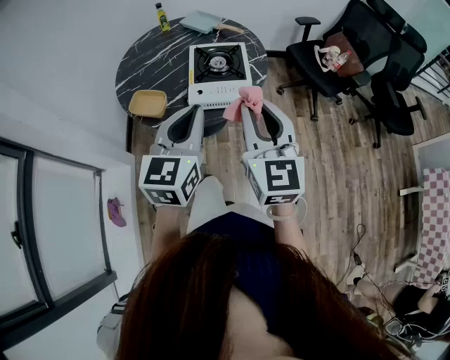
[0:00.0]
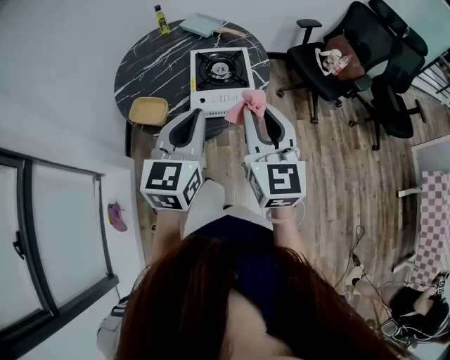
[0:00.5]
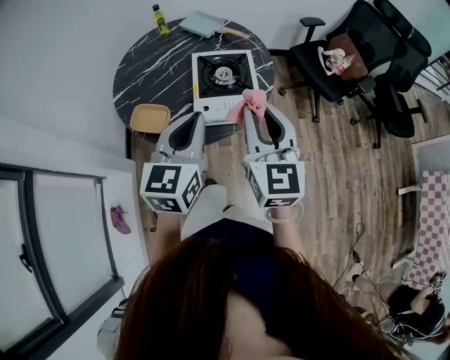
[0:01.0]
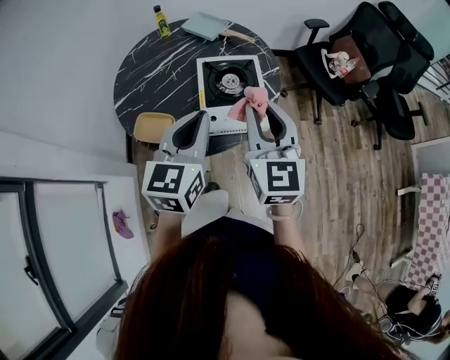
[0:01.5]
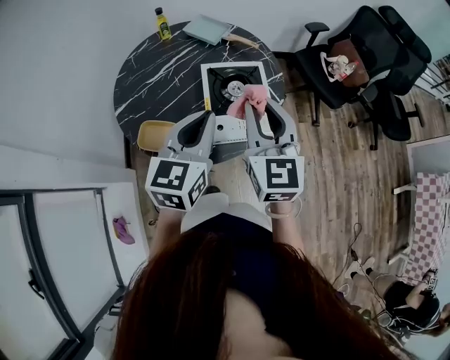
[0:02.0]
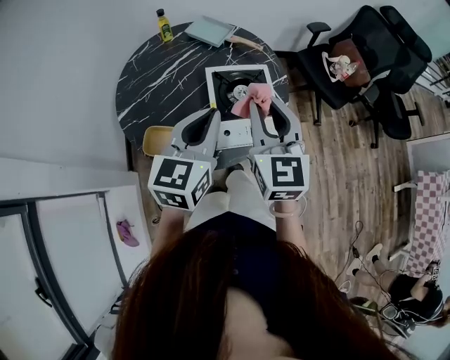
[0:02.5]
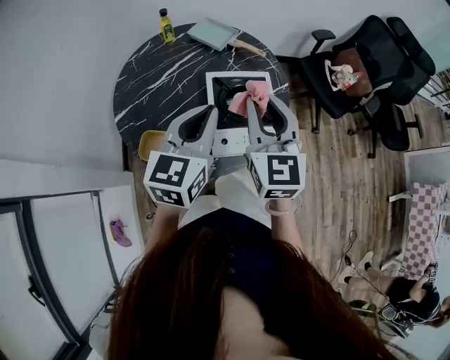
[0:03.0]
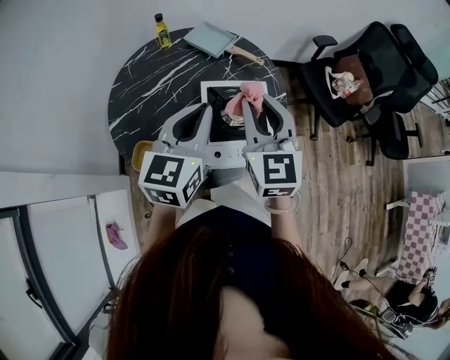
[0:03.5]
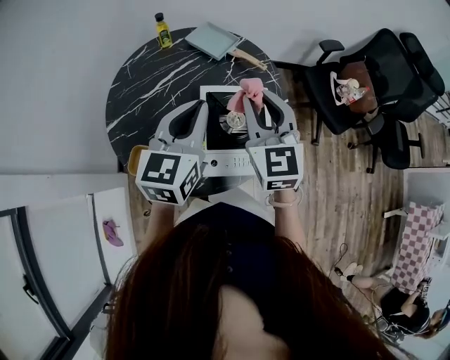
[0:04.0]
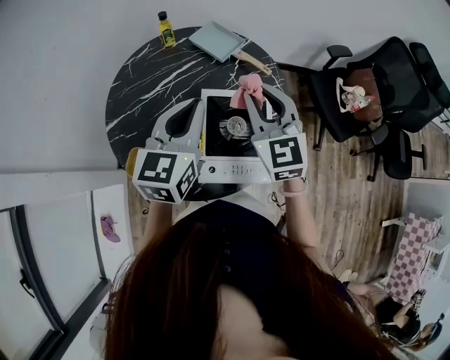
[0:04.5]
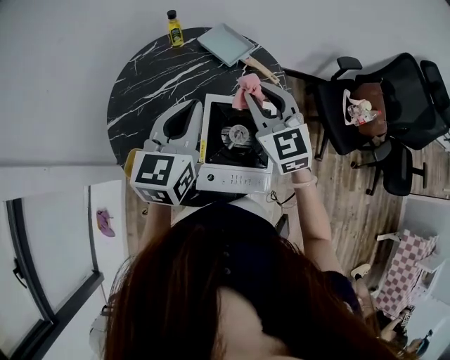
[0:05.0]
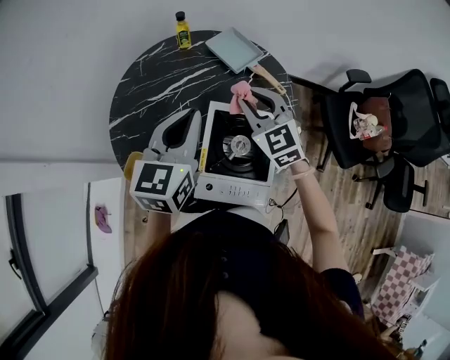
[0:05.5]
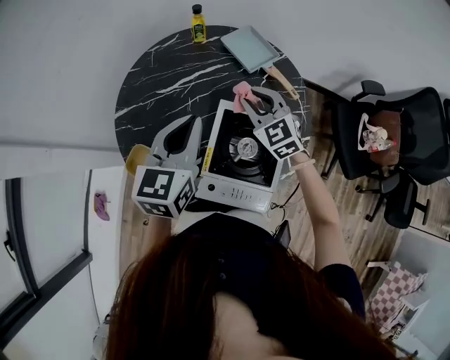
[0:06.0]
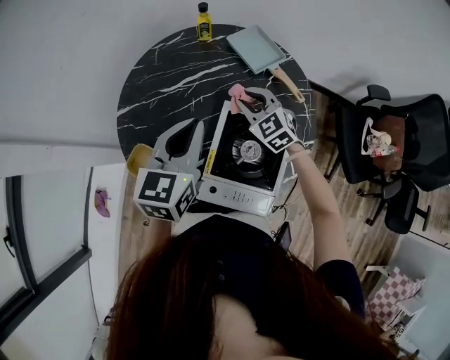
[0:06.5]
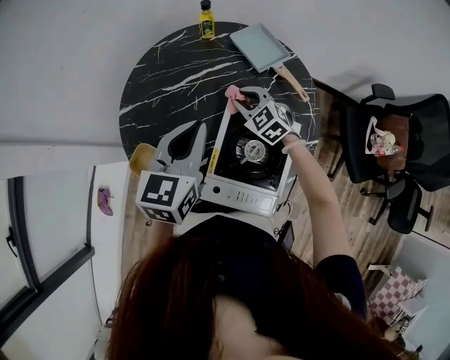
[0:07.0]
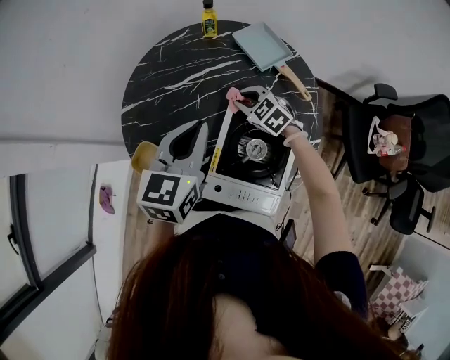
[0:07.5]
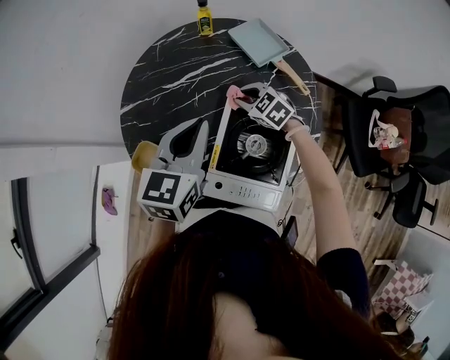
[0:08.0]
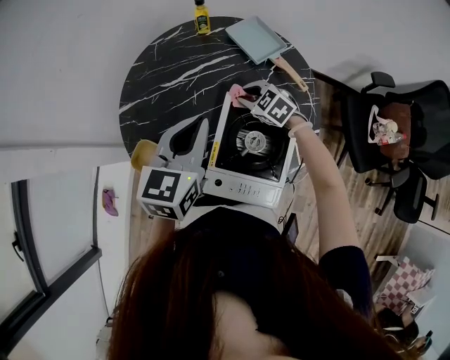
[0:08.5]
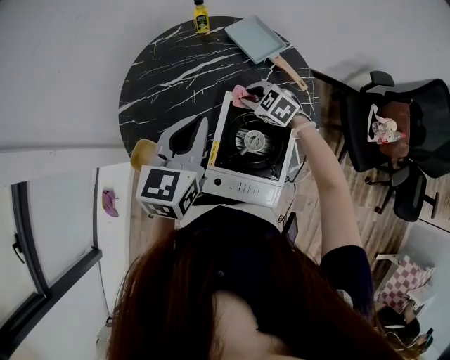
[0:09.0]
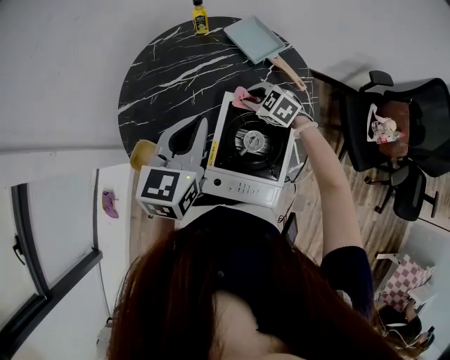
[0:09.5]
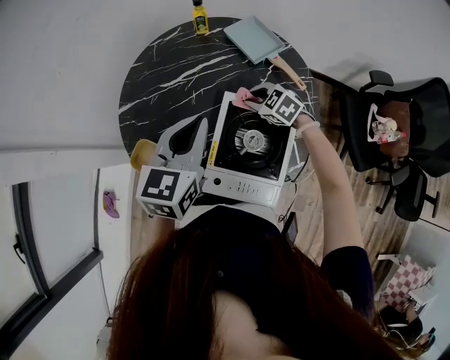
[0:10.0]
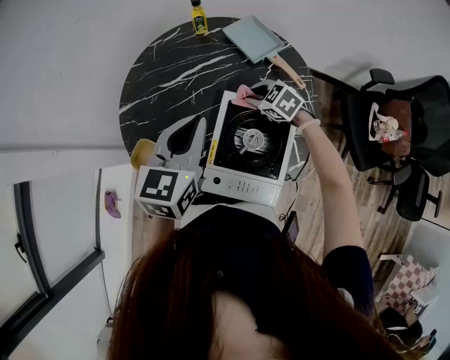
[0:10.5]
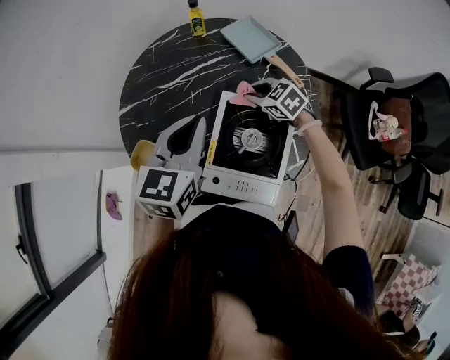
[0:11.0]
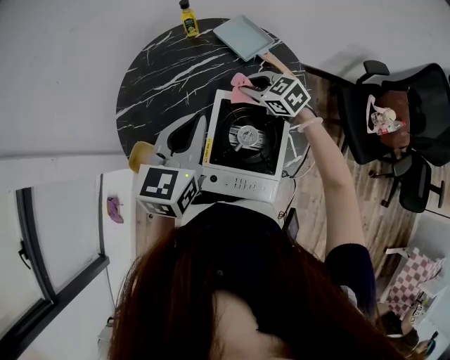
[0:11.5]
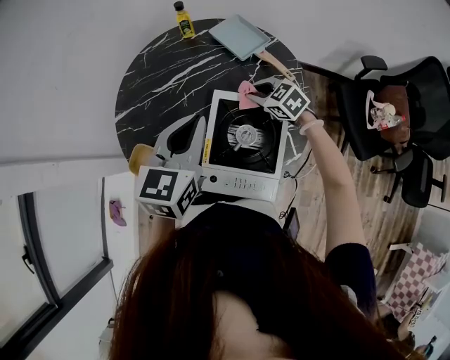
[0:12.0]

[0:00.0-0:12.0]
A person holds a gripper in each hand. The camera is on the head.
0:00.0 to 0:02.0: The grippers both shift forward and to the left by approximately 20 cm.
0:02.0 to 0:04.0: The grippers both shift forward by about 15 cm.
0:04.0 to 0:06.0: The right gripper is displaced downward and forward by approximately 20 cm, and swivels some 40 degrees. Meanwhile the left gripper is displaced forward and downward by approximately 10 cm.
0:06.0 to 0:08.0: The right gripper shifts some 15 cm downward, and changes its angle by roughly 30 degrees.
0:08.0 to 0:10.0: The grippers move only a little.

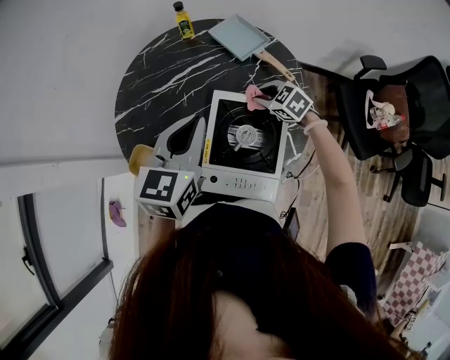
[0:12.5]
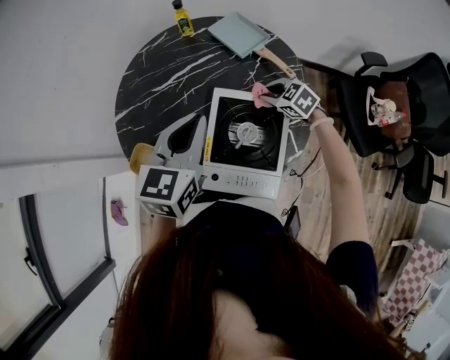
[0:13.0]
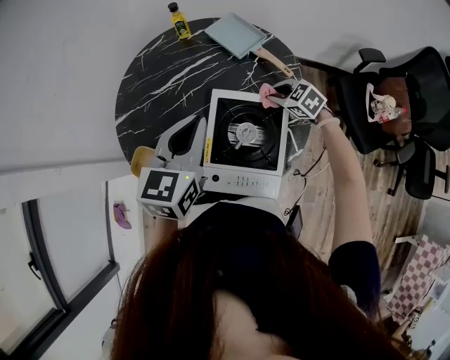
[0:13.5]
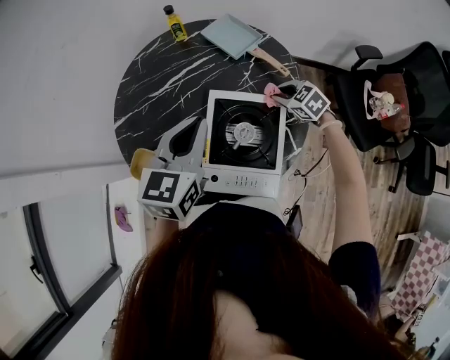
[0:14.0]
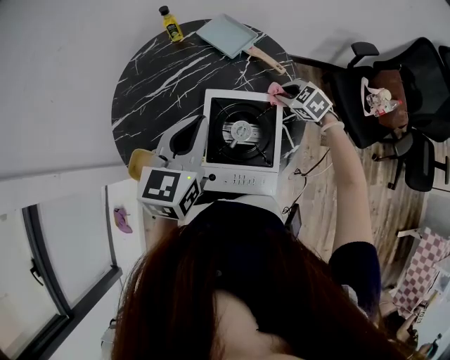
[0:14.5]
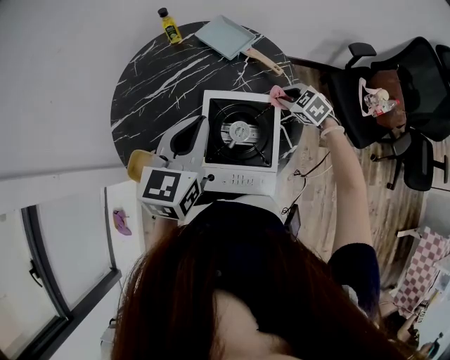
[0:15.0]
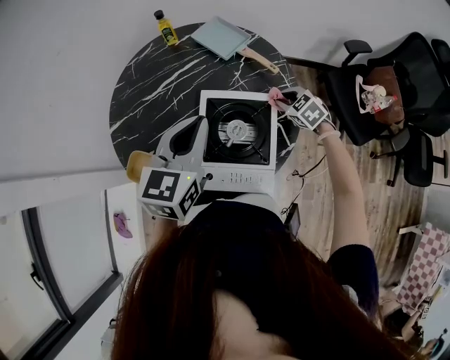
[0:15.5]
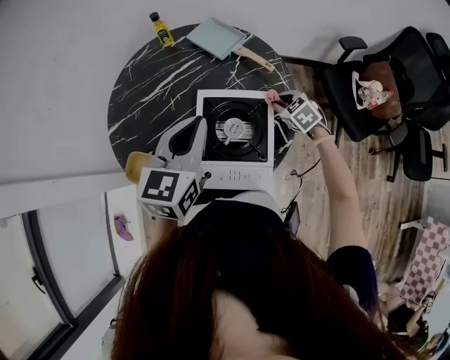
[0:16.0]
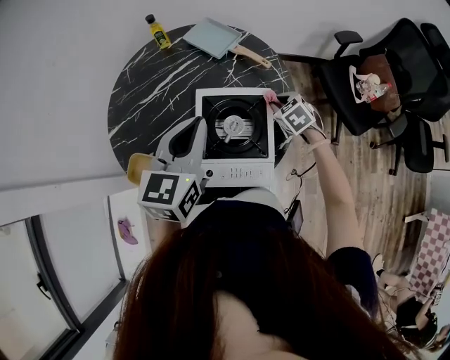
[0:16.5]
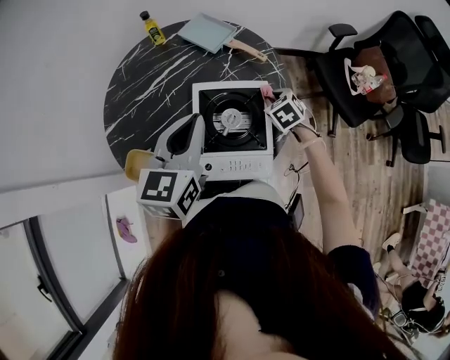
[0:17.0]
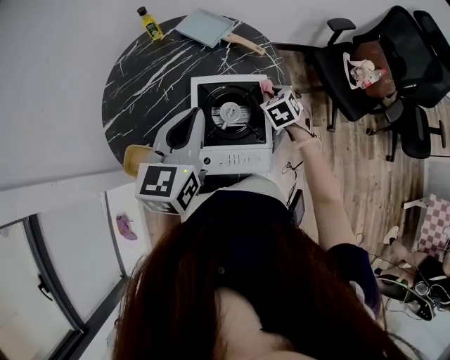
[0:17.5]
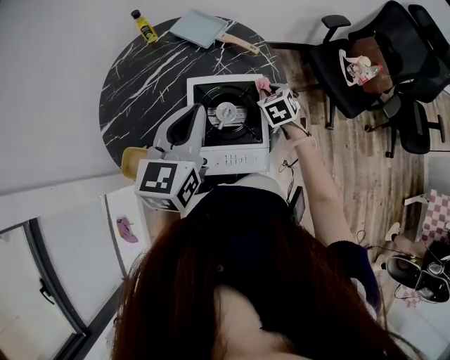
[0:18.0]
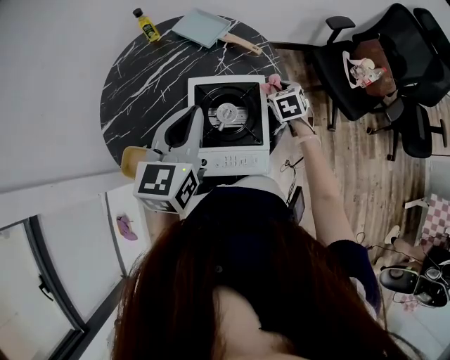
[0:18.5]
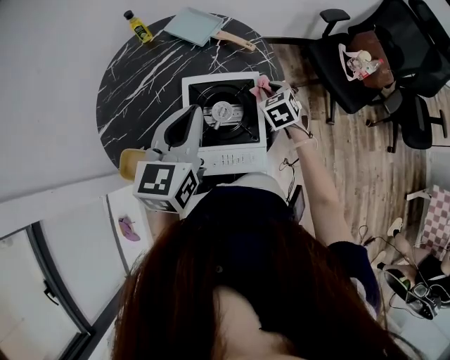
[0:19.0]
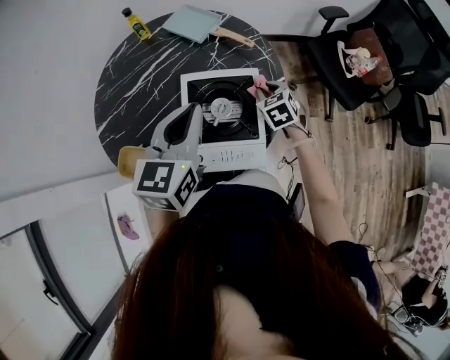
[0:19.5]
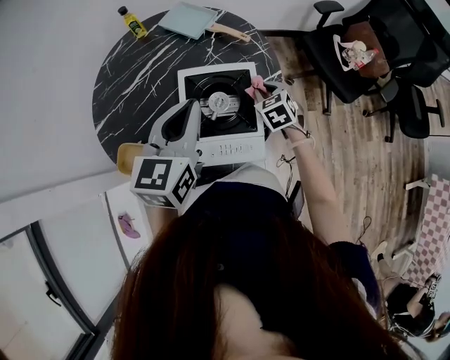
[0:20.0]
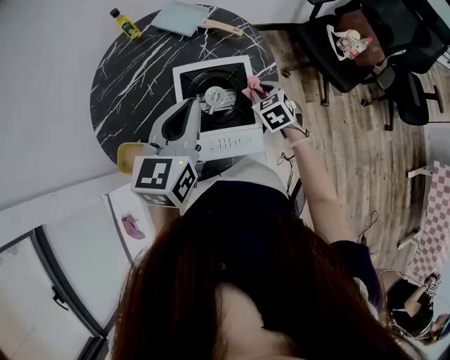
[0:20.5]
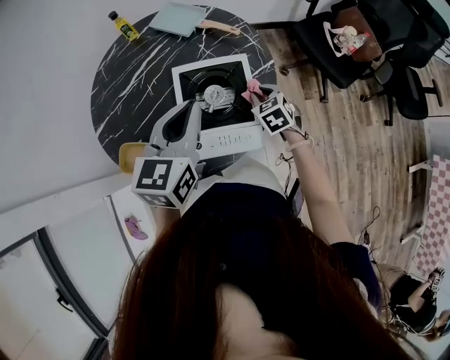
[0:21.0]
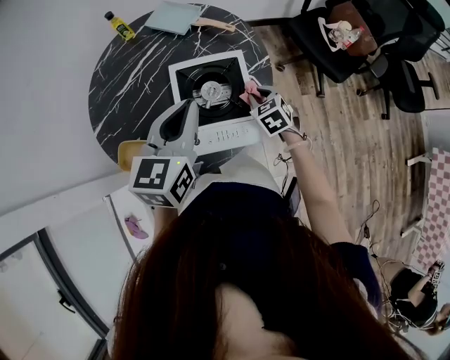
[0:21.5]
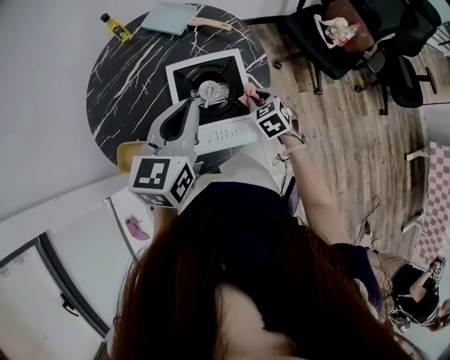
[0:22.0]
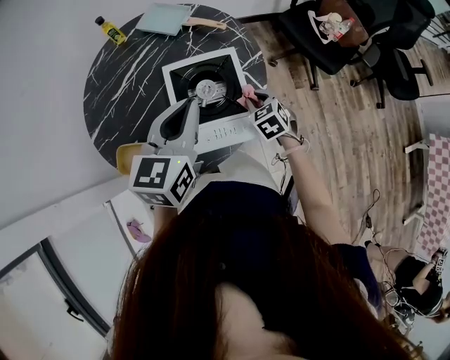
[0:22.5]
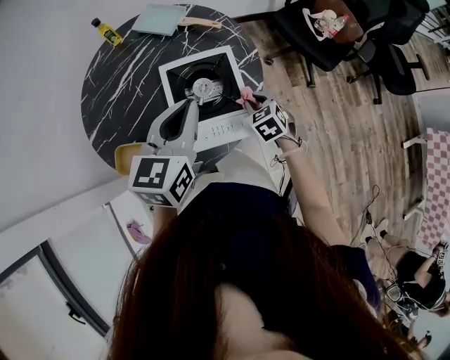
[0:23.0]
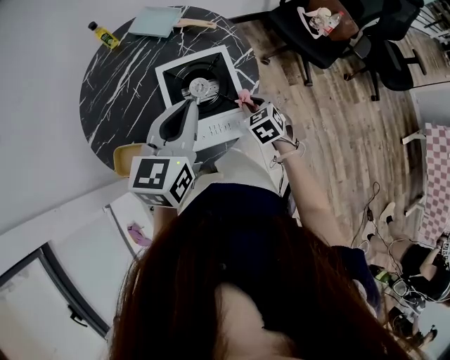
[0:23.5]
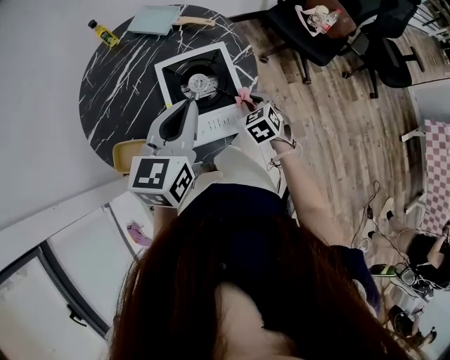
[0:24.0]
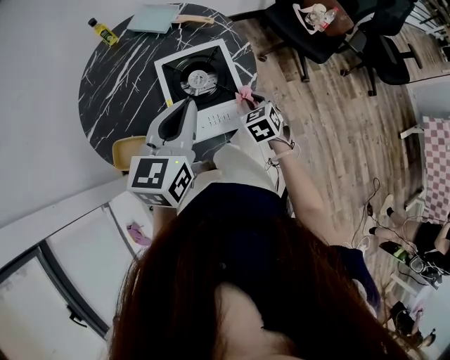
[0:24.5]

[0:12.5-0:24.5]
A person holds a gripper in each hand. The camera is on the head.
0:12.5 to 0:14.5: The right gripper heads to the right, covering some 10 cm.
0:14.5 to 0:16.5: The right gripper is displaced backward by some 5 cm.
0:16.5 to 0:18.5: The right gripper rotates some 20 degrees.
0:18.5 to 0:20.5: The right gripper heads backward, covering roughly 10 cm.
0:20.5 to 0:22.5: The right gripper is displaced backward by some 5 cm.
0:22.5 to 0:24.5: The right gripper goes roughly 5 cm backward. The left gripper moves some 5 cm.

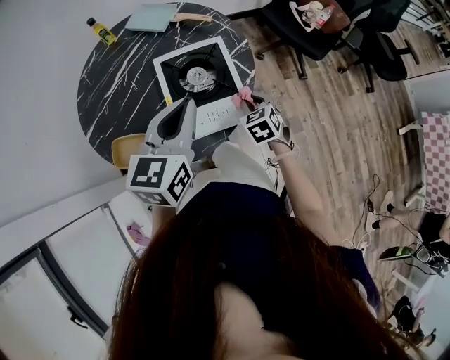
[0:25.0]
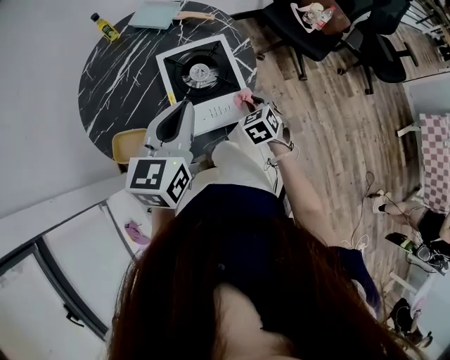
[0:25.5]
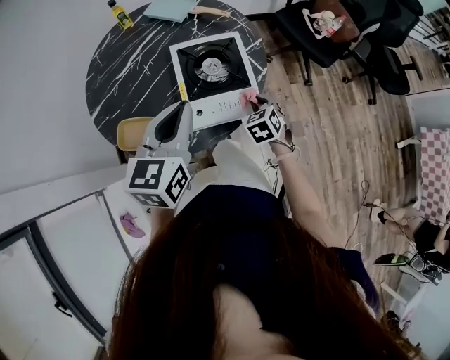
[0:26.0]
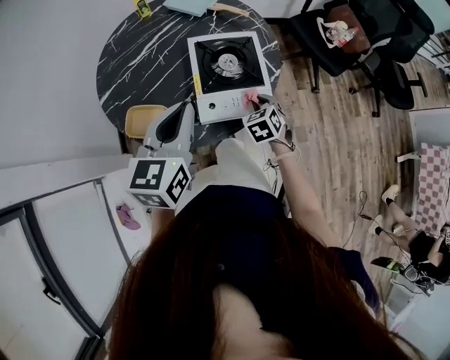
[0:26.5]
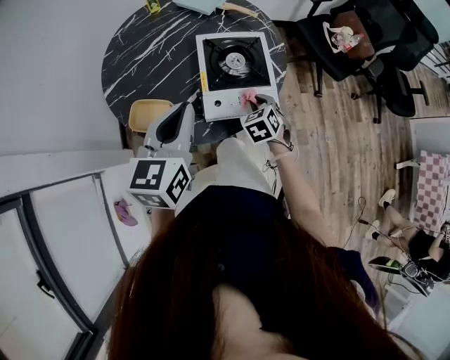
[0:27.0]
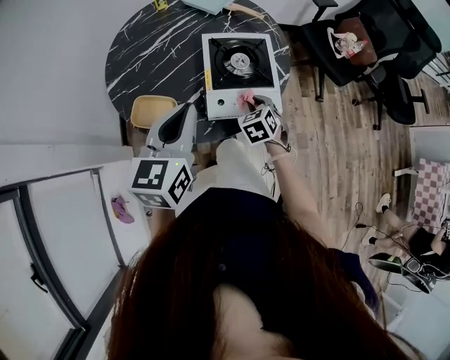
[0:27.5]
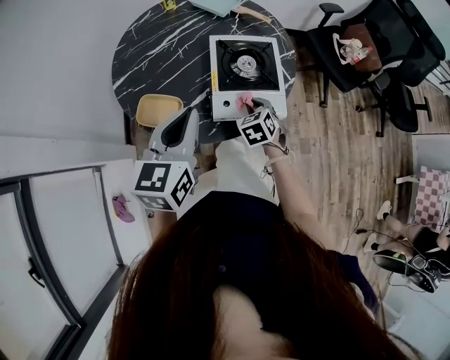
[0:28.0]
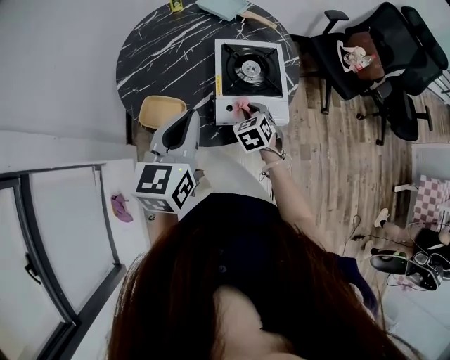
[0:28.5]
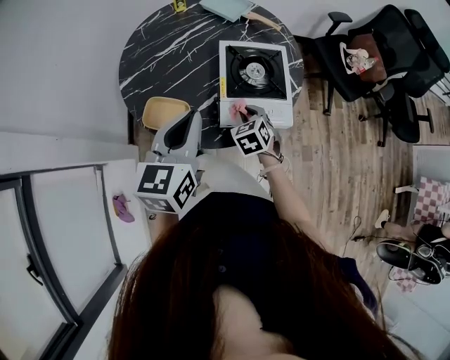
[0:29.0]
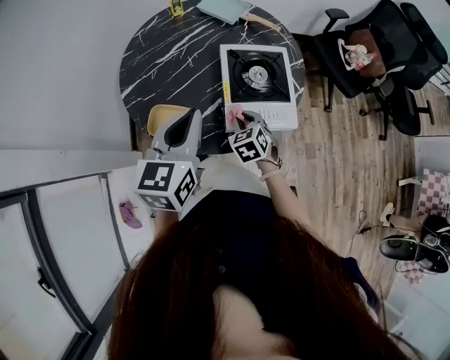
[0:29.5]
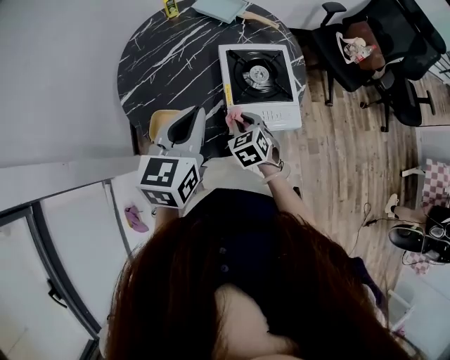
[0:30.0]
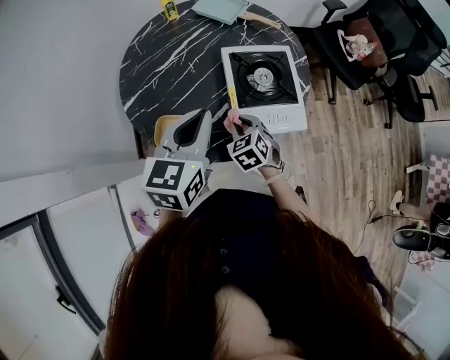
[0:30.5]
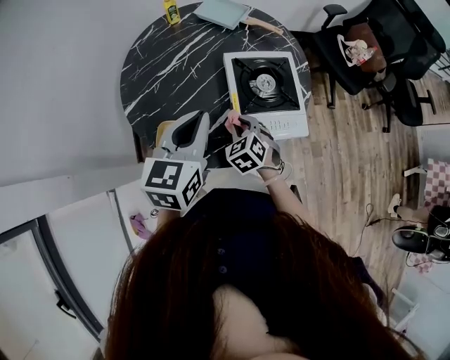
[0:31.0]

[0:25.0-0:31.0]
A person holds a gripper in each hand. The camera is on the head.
0:25.0 to 0:27.0: The right gripper heads to the left, covering about 10 cm; the left gripper moves to the left and backward, approximately 15 cm.
0:27.0 to 0:29.0: The right gripper is displaced to the left by roughly 10 cm.
0:29.0 to 0:31.0: The right gripper moves to the left, about 5 cm, while the left gripper heads forward, covering roughly 5 cm.
